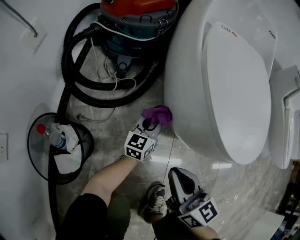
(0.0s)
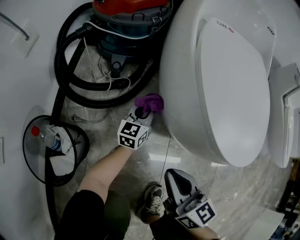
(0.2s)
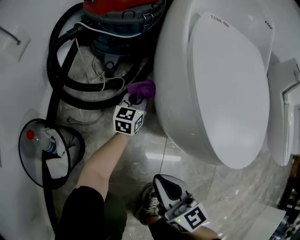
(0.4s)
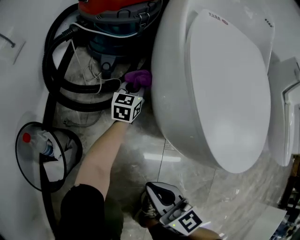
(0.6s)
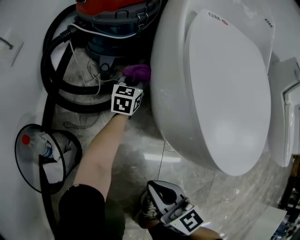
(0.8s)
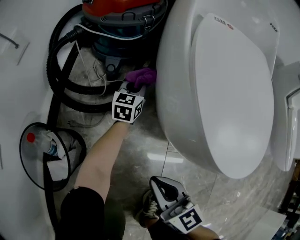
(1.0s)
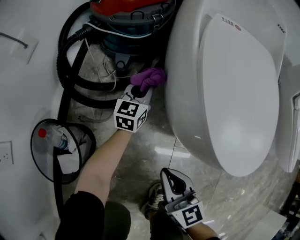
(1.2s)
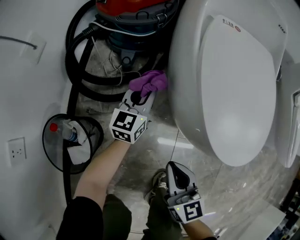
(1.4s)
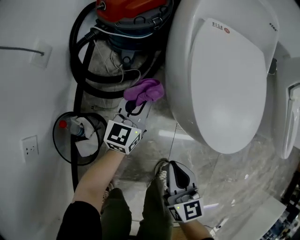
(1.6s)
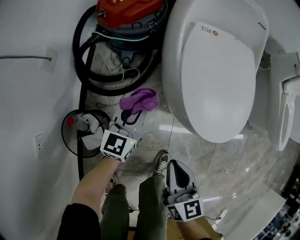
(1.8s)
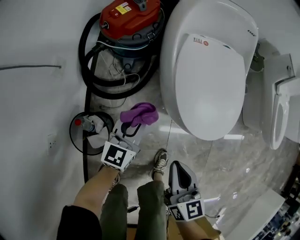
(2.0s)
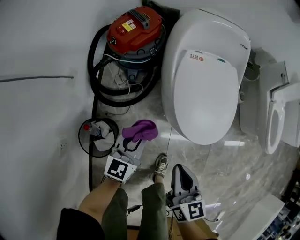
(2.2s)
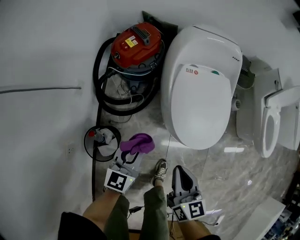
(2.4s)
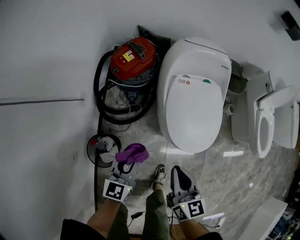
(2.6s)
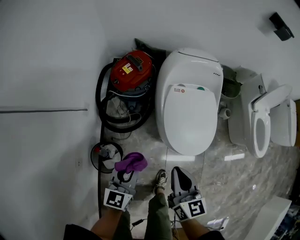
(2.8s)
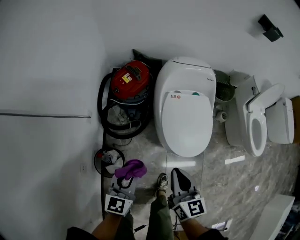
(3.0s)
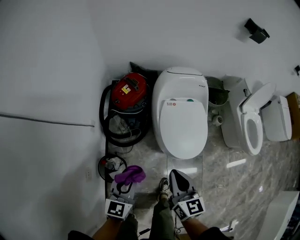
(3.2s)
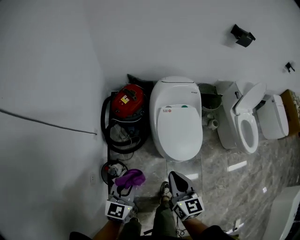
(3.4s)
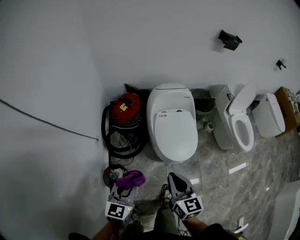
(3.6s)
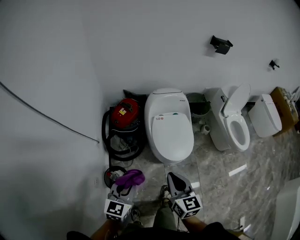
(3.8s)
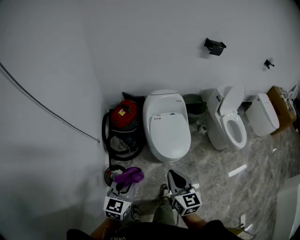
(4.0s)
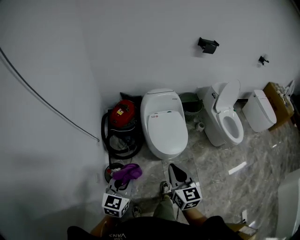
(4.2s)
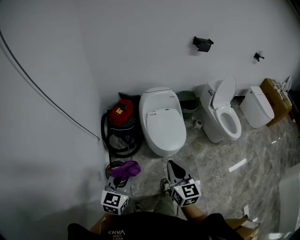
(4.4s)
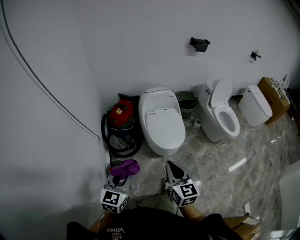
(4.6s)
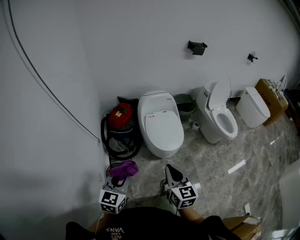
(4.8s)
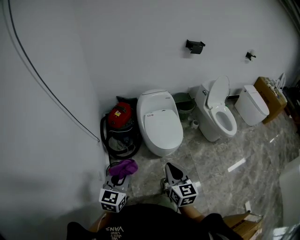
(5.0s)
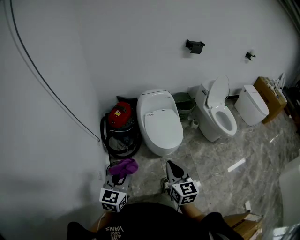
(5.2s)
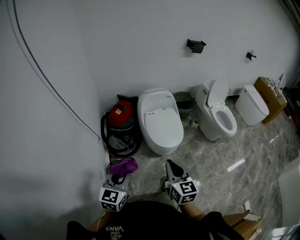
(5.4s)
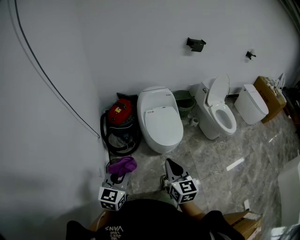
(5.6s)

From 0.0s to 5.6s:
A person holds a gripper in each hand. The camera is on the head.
From 0.0s to 1.4s: The left gripper moves upward, forward and to the left, some 15 cm.
From 1.4s to 2.8s: The left gripper is displaced upward and backward by about 50 cm. Meanwhile the right gripper goes some 40 cm upward.
From 2.8s to 4.2s: Both grippers travel together upward and backward, some 30 cm.
From 4.2s to 5.6s: The grippers both shift backward by approximately 10 cm.

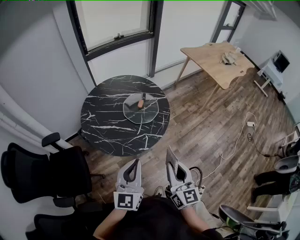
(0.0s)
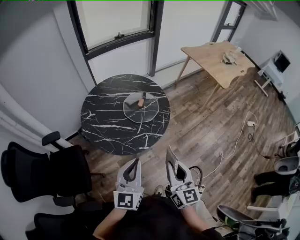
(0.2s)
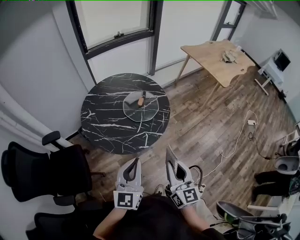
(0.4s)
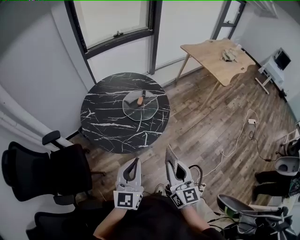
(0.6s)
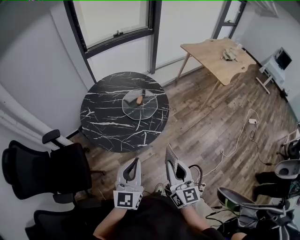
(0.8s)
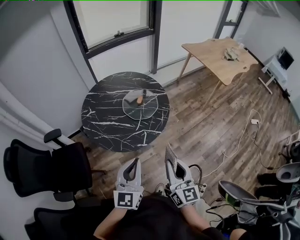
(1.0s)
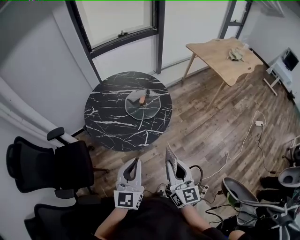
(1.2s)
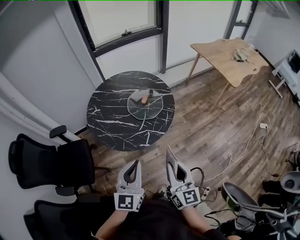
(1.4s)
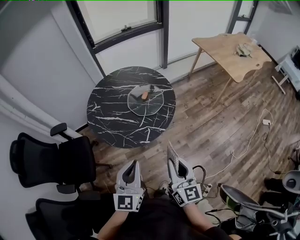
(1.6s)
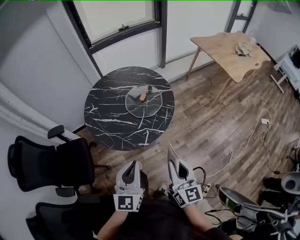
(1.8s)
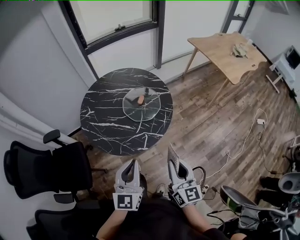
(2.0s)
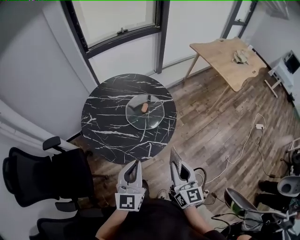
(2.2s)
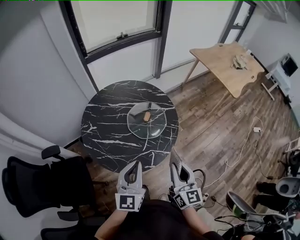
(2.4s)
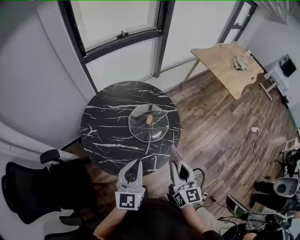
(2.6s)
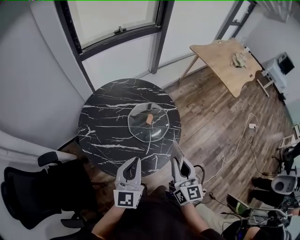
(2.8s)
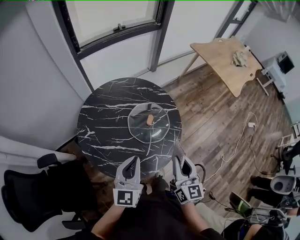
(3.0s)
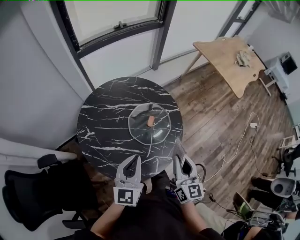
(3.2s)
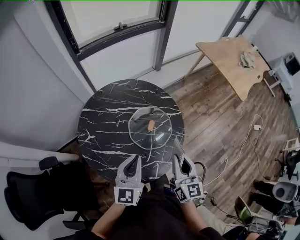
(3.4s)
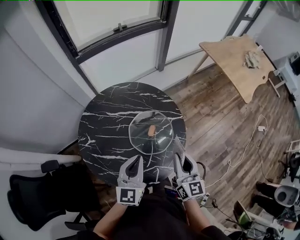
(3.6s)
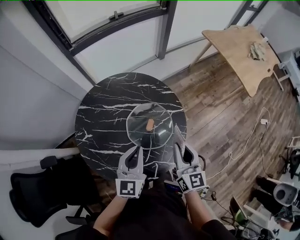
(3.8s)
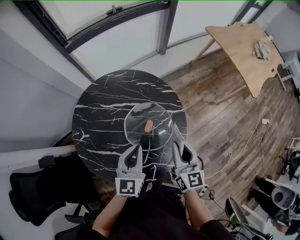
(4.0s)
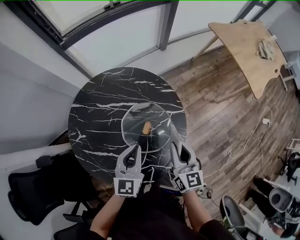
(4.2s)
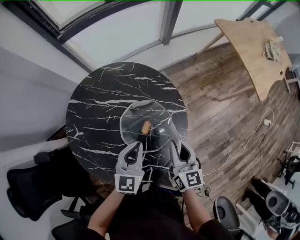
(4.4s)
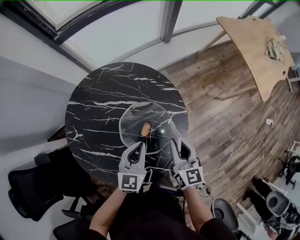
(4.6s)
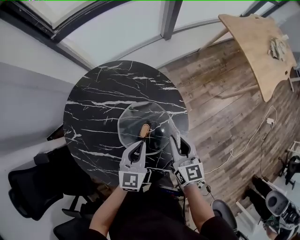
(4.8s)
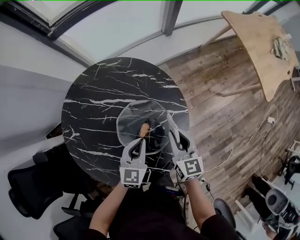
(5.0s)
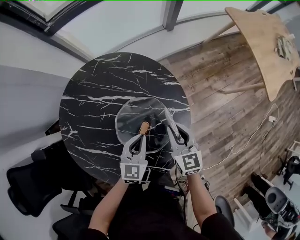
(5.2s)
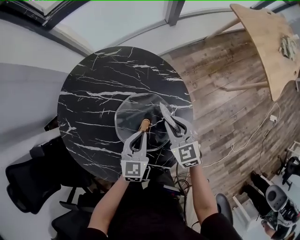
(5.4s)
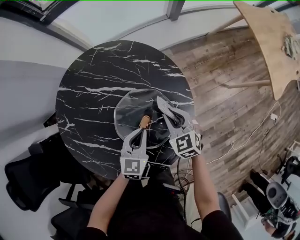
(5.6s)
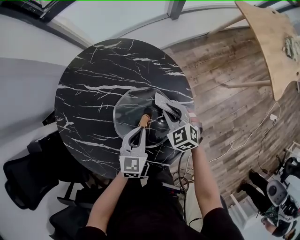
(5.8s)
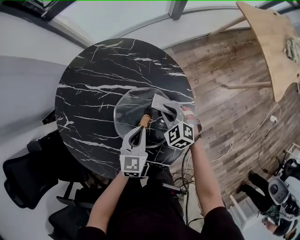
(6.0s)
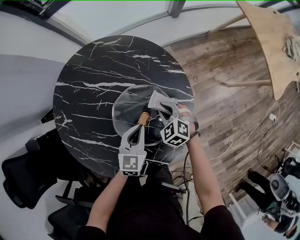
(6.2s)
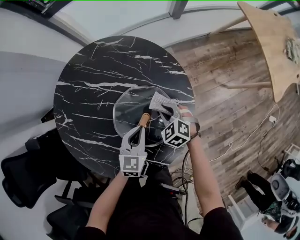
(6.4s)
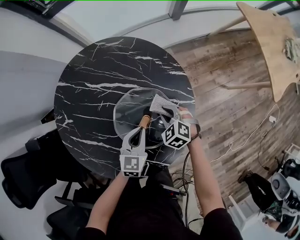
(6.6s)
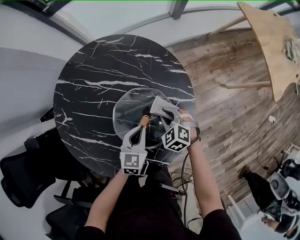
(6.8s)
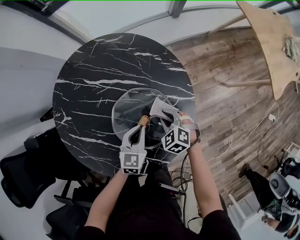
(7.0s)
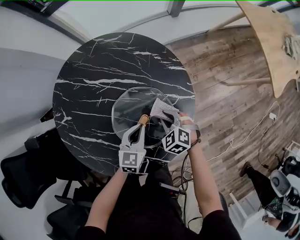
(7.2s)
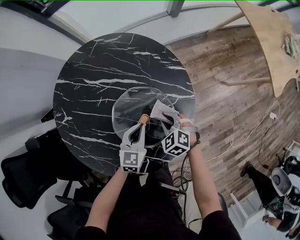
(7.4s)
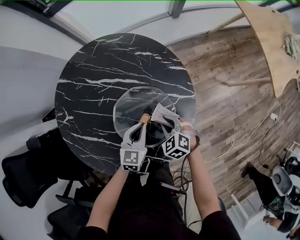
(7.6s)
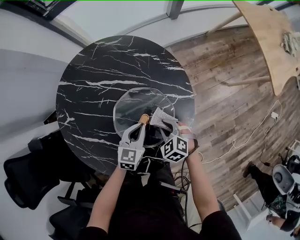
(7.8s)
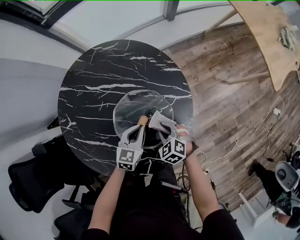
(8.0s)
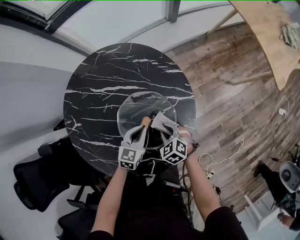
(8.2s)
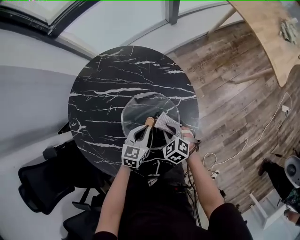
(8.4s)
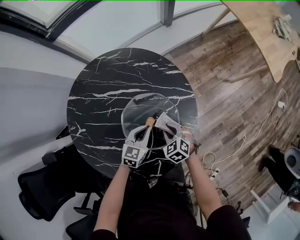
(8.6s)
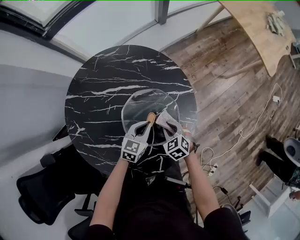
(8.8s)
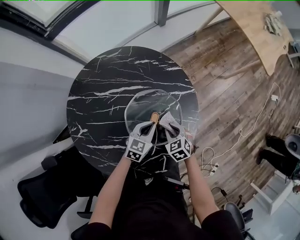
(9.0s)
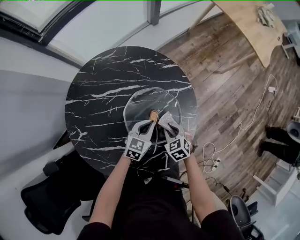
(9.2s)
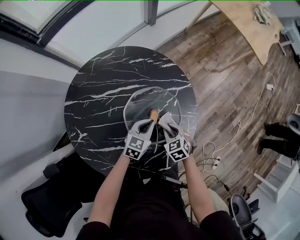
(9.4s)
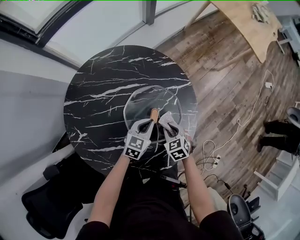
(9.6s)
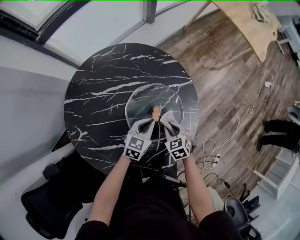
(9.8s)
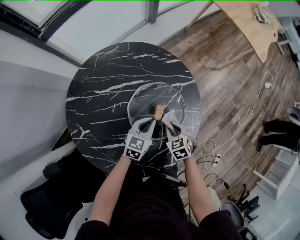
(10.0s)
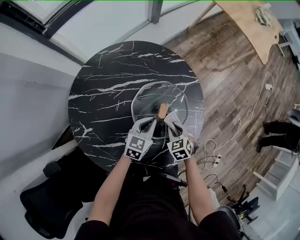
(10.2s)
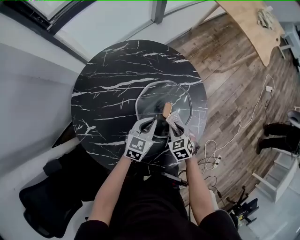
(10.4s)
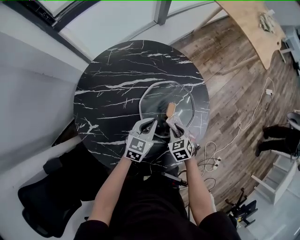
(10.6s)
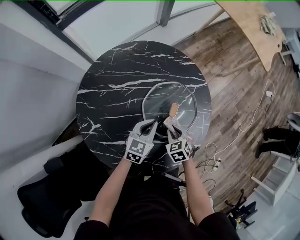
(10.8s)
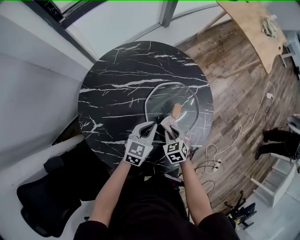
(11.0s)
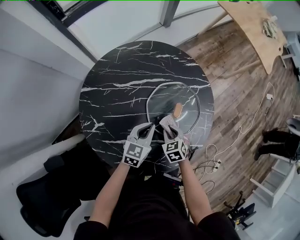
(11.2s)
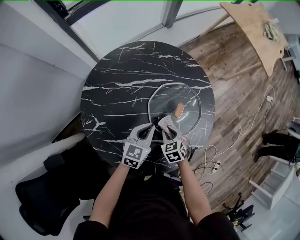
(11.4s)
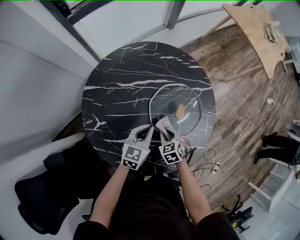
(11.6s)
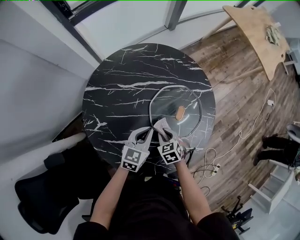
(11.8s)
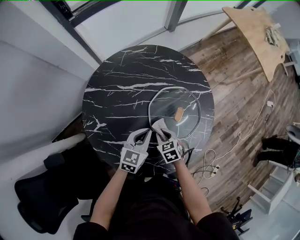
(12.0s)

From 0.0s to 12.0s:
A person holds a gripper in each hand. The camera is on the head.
From 0.0s to 1.6s: The two grippers go roughly 5 cm to the right.
From 1.6s to 3.0s: Both grippers move forward and to the left, approximately 30 cm.
From 3.0s to 4.4s: The grippers both shift forward and downward by approximately 25 cm.
From 4.4s to 6.0s: The left gripper is displaced downward by about 15 cm, while the right gripper travels downward and forward by roughly 25 cm, and angles its fingers downward, by roughly 40 degrees.
From 6.0s to 7.6s: The right gripper shifts roughly 10 cm backward.
From 7.6s to 9.0s: The right gripper turns by approximately 30 degrees. The left gripper swivels approximately 30 degrees.
From 9.0s to 10.4s: The left gripper heads to the left, covering roughly 5 cm; the right gripper moves approximately 5 cm.
From 10.4s to 12.0s: The grippers both shift to the left by roughly 10 cm.

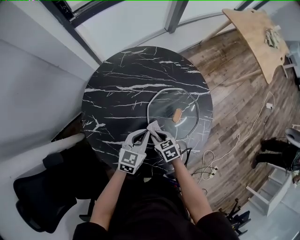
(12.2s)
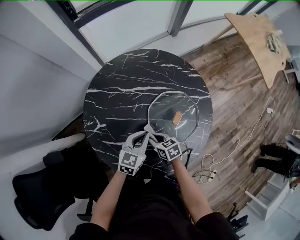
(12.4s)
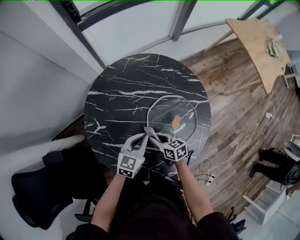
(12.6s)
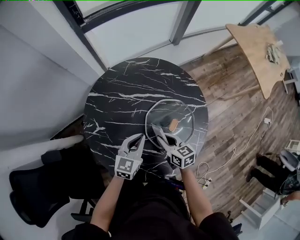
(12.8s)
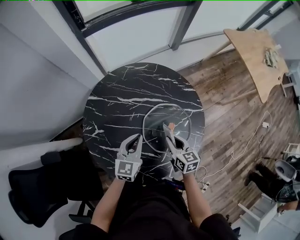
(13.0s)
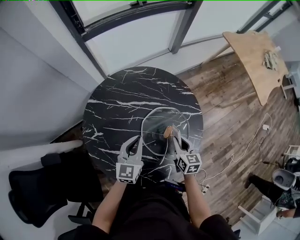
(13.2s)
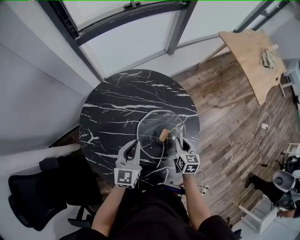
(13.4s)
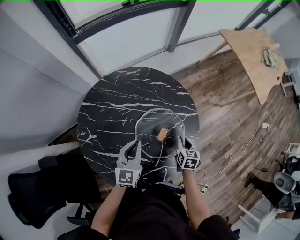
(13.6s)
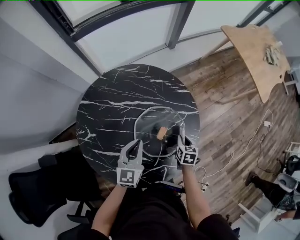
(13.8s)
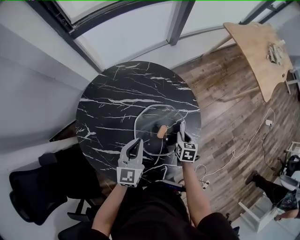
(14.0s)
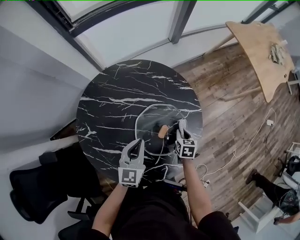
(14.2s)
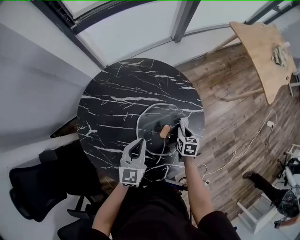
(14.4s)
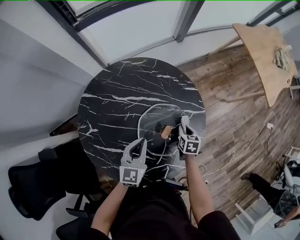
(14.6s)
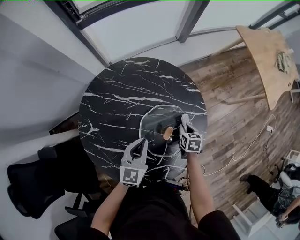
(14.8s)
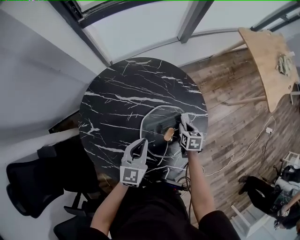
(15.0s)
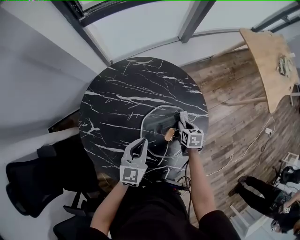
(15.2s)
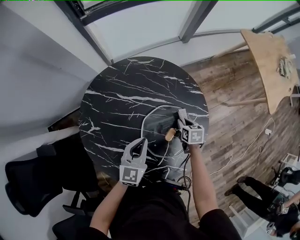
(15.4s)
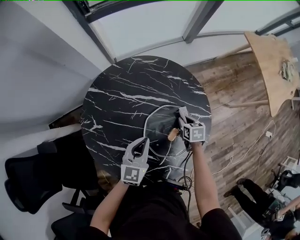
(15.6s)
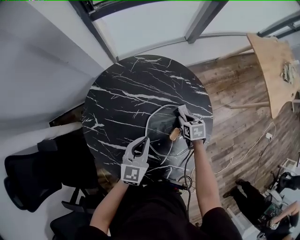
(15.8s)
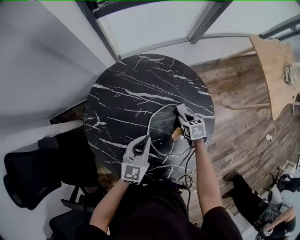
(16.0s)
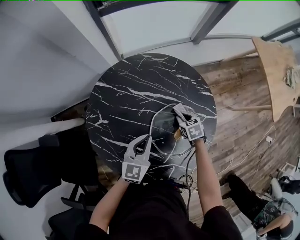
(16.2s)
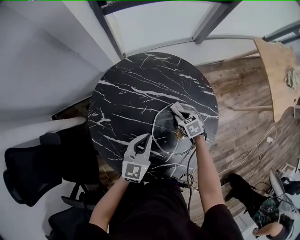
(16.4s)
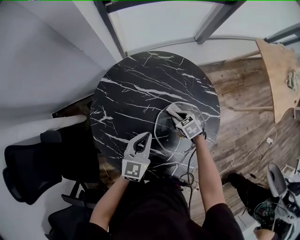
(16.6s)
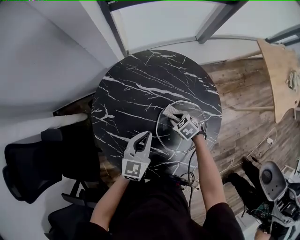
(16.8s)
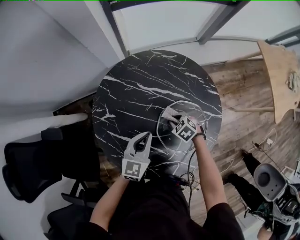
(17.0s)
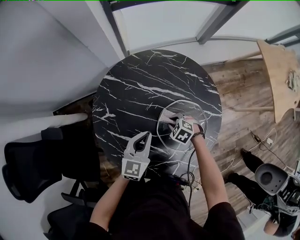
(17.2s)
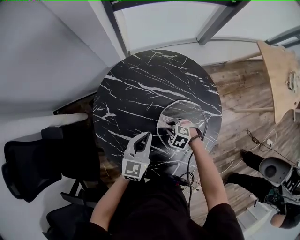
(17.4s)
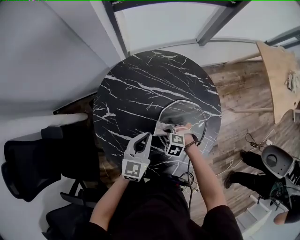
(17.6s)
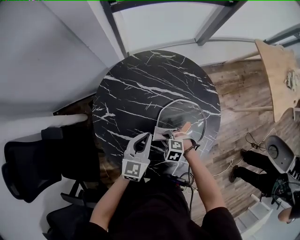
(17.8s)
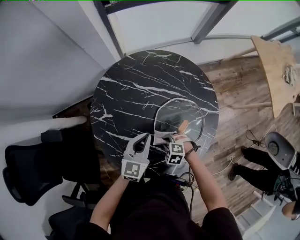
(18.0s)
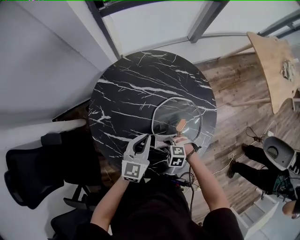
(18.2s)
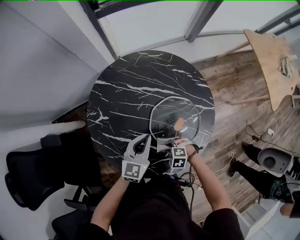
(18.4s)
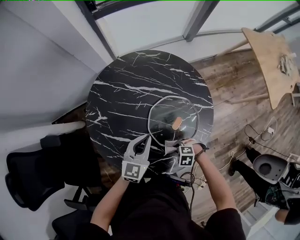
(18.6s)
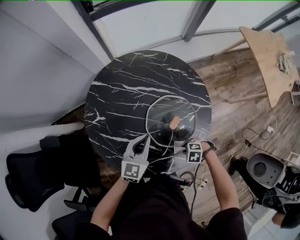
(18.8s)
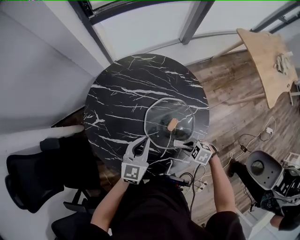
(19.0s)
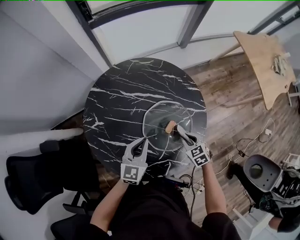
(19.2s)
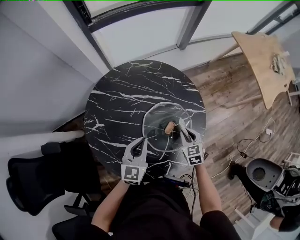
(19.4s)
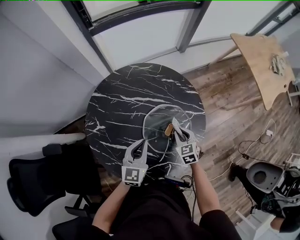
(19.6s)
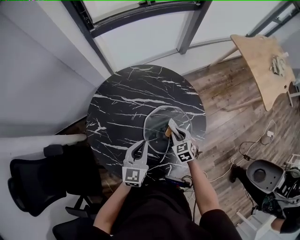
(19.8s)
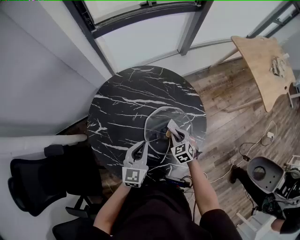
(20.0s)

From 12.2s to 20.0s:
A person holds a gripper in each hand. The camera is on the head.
From 12.2s to 13.8s: The left gripper moves upward, some 10 cm, and turns by some 20 degrees; the right gripper moves to the right, some 25 cm, and turns by roughly 30 degrees.
From 13.8s to 15.4s: The right gripper goes approximately 10 cm forward and to the left.
From 15.4s to 16.8s: The right gripper ends up some 15 cm from where it was, and twists about 40 degrees counterclockwise, seen from behind; the left gripper changes place by approximately 5 cm.
From 16.8s to 18.4s: The right gripper ends up roughly 20 cm from where it was, and turns by some 40 degrees.
From 18.4s to 20.0s: The right gripper shifts by about 20 cm, and changes its angle by some 60 degrees.
